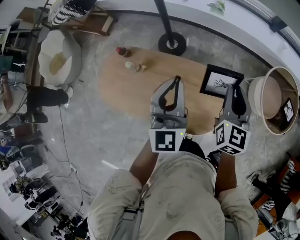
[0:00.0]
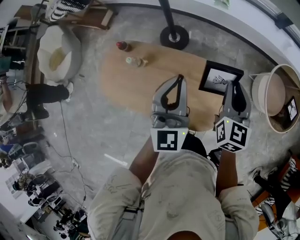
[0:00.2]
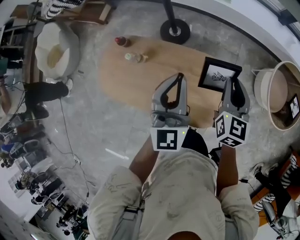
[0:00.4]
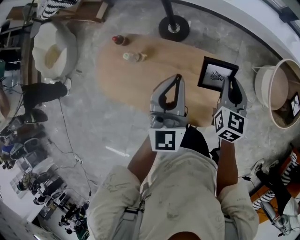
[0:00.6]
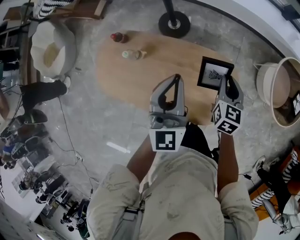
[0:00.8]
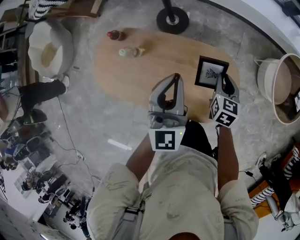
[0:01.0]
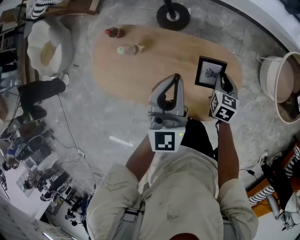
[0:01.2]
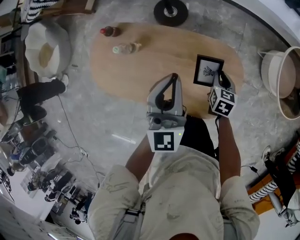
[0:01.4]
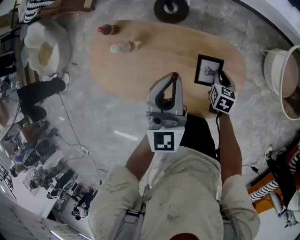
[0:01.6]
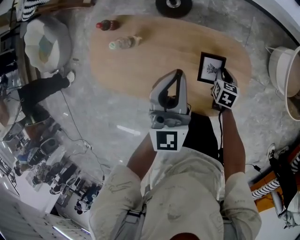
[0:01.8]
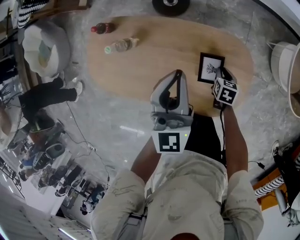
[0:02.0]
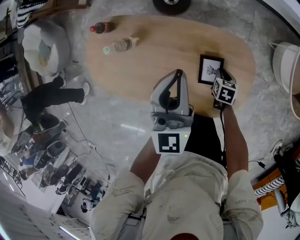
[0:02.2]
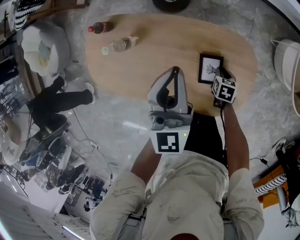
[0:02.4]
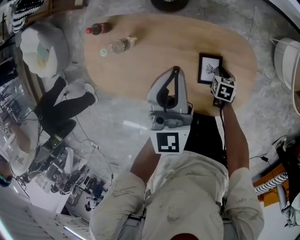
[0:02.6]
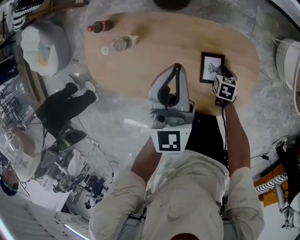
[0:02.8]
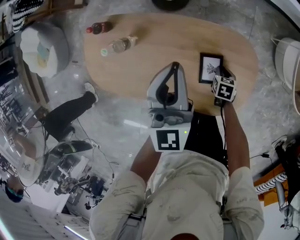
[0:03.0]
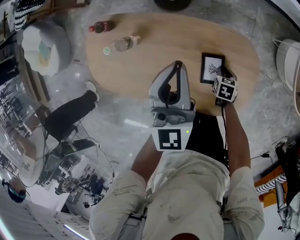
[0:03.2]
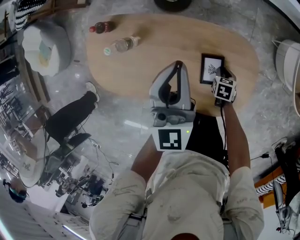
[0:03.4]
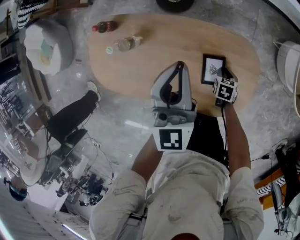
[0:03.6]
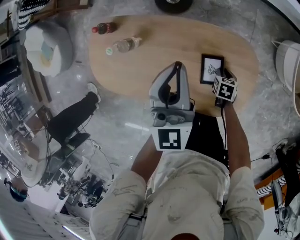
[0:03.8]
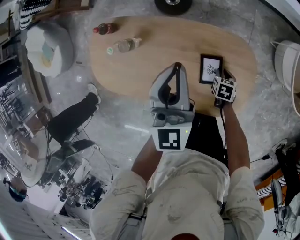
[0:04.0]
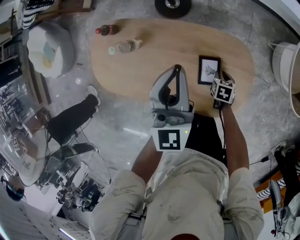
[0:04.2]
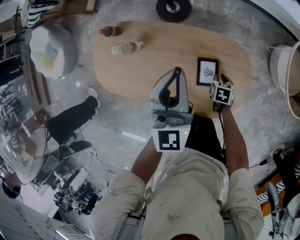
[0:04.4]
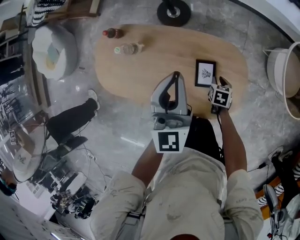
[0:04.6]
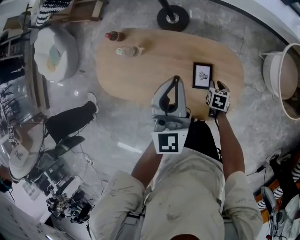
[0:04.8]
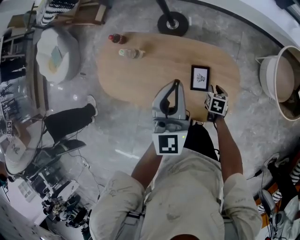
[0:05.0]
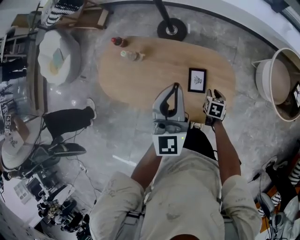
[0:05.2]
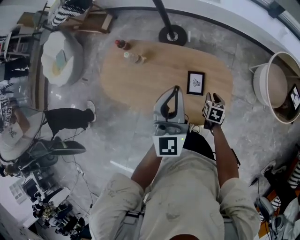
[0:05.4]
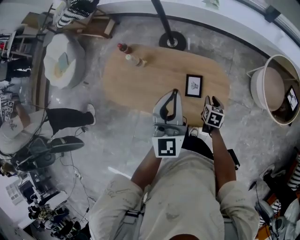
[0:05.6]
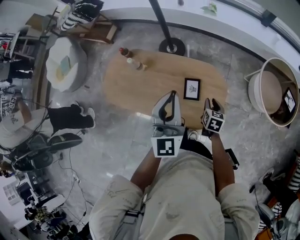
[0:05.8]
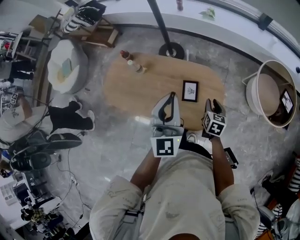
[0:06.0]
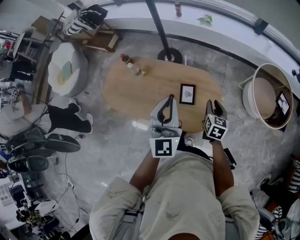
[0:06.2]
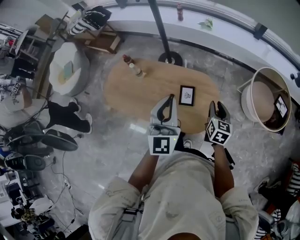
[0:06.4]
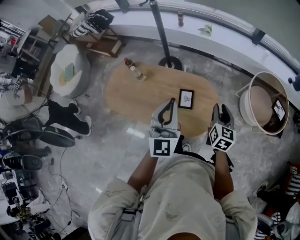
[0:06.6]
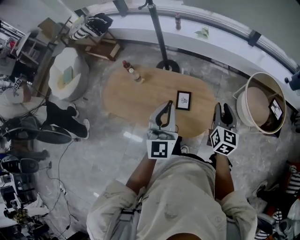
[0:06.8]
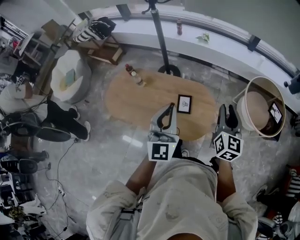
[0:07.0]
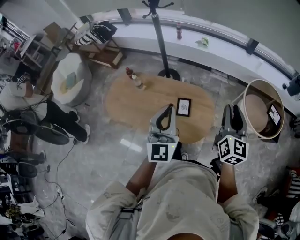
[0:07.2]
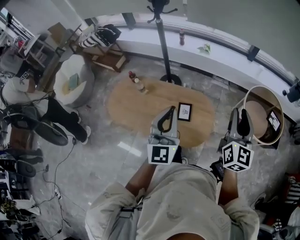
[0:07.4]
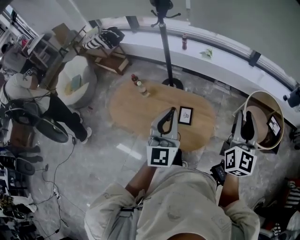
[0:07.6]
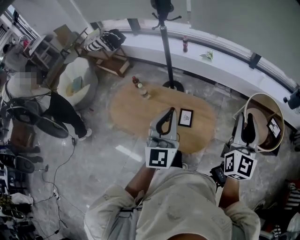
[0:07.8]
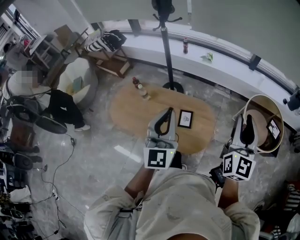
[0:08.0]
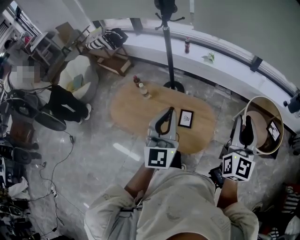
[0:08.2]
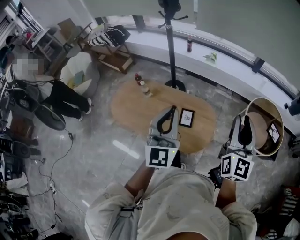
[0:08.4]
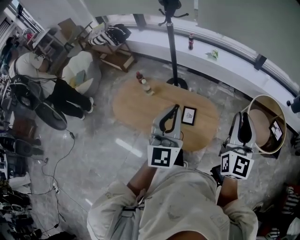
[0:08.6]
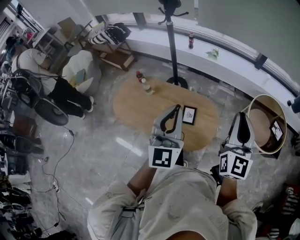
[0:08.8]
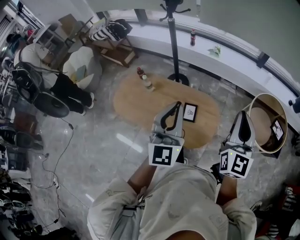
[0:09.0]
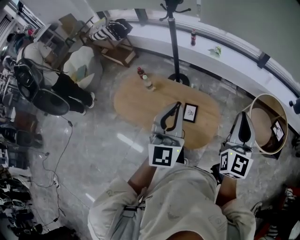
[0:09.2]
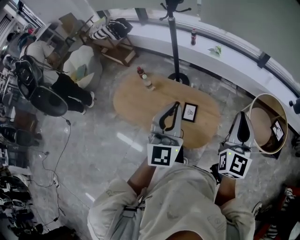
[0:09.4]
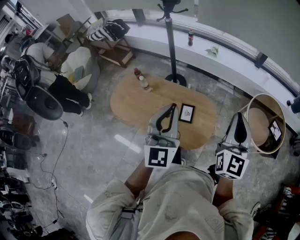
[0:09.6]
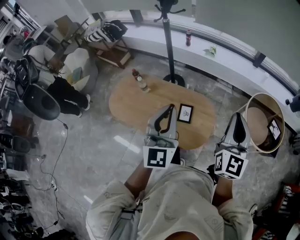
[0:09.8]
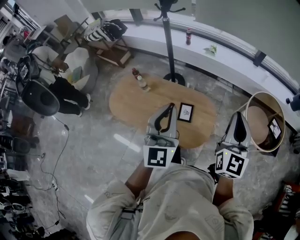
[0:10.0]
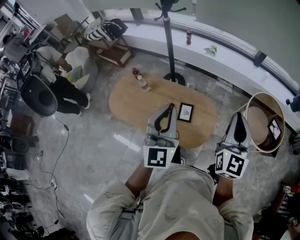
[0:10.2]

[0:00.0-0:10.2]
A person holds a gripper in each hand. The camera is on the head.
0:00.0 to 0:01.4: The left gripper travels downward by approximately 15 cm. Meanwhile the right gripper heads downward, covering some 30 cm, and tips its fingers downward by approximately 30 degrees.
0:01.4 to 0:03.0: The left gripper travels downward by approximately 5 cm. Meanwhile the right gripper is displaced downward by about 20 cm.
0:03.0 to 0:04.4: The left gripper moves upward, some 5 cm.
0:04.4 to 0:05.8: The left gripper travels backward and upward by approximately 20 cm; the right gripper shifts roughly 20 cm upward, and swivels some 20 degrees.
0:05.8 to 0:07.2: The right gripper is displaced upward by about 35 cm, and tilts its fingers about 40 degrees upward. The left gripper heads backward and upward, covering approximately 10 cm.
0:07.2 to 0:08.8: The grippers both shift upward by some 10 cm. The right gripper closes.
0:08.8 to 0:10.2: There are only small adjustments of the grippers.

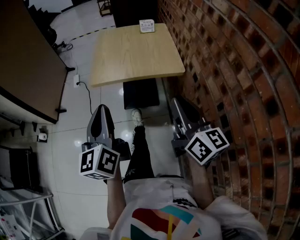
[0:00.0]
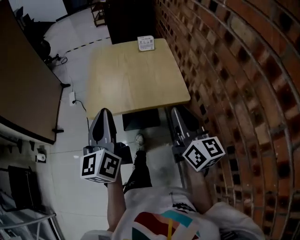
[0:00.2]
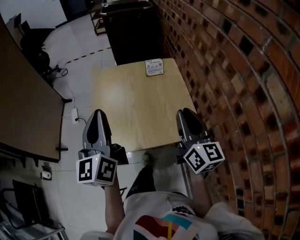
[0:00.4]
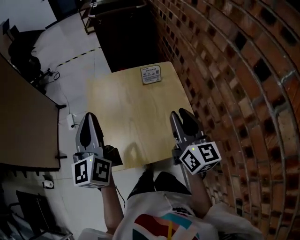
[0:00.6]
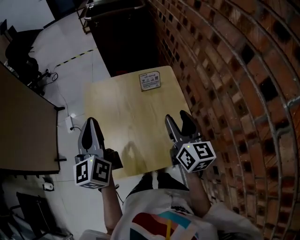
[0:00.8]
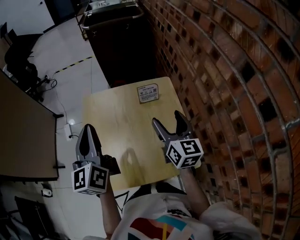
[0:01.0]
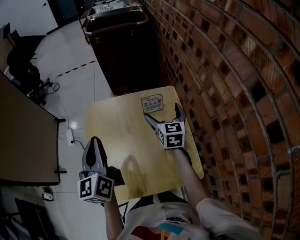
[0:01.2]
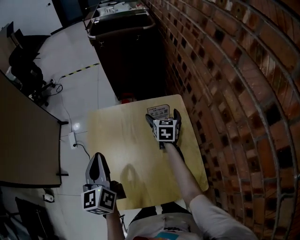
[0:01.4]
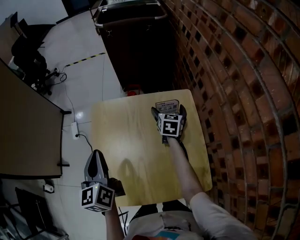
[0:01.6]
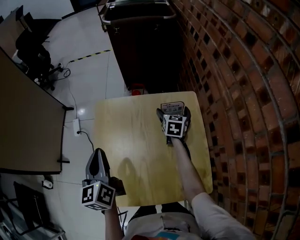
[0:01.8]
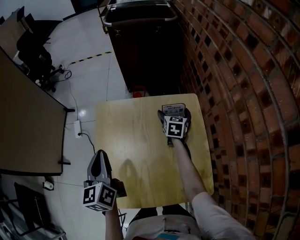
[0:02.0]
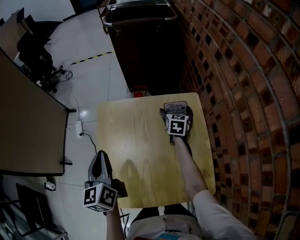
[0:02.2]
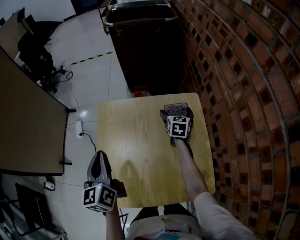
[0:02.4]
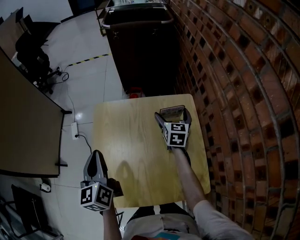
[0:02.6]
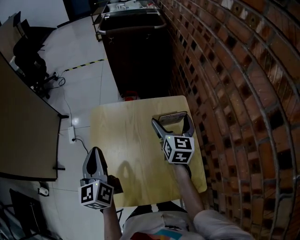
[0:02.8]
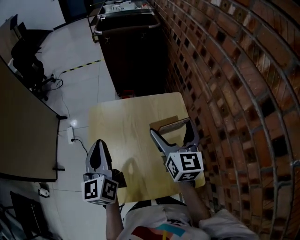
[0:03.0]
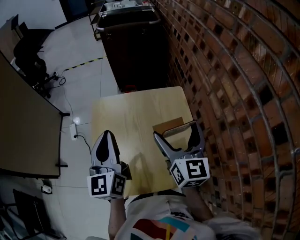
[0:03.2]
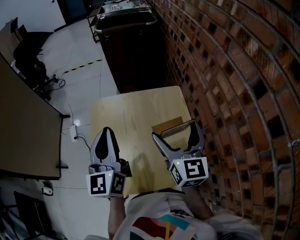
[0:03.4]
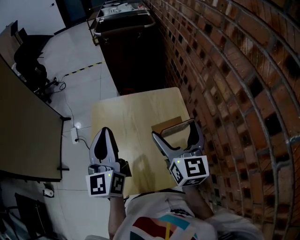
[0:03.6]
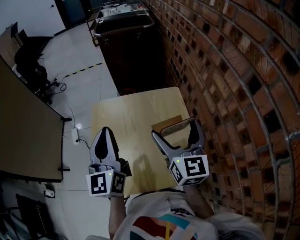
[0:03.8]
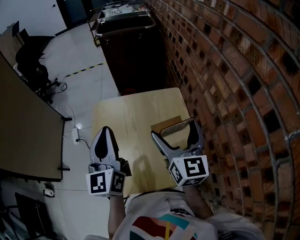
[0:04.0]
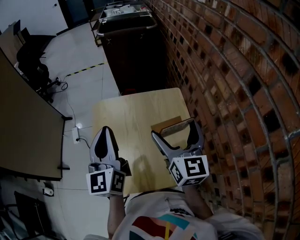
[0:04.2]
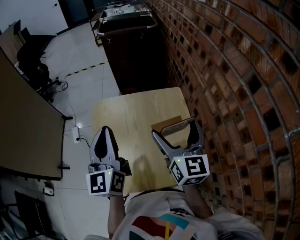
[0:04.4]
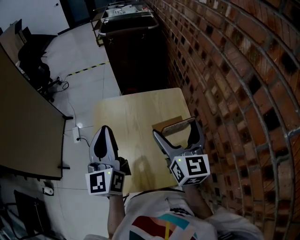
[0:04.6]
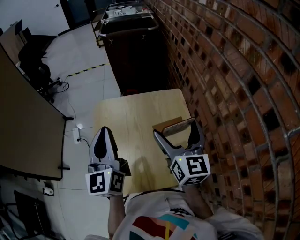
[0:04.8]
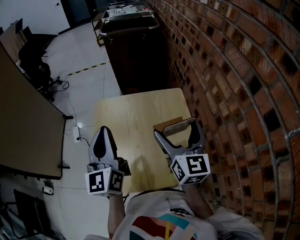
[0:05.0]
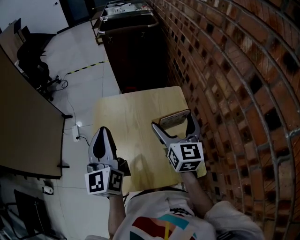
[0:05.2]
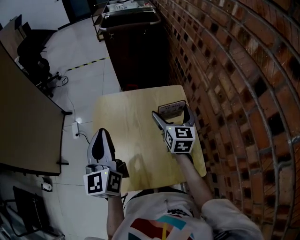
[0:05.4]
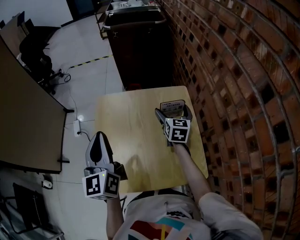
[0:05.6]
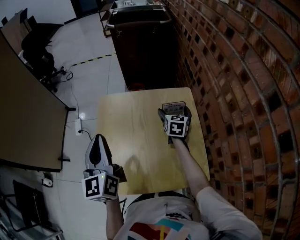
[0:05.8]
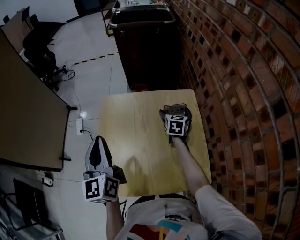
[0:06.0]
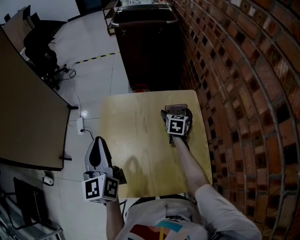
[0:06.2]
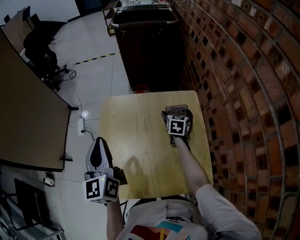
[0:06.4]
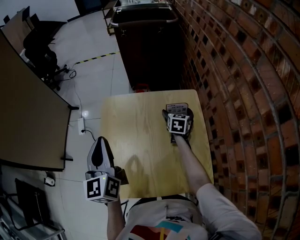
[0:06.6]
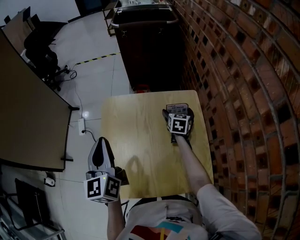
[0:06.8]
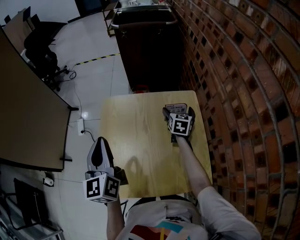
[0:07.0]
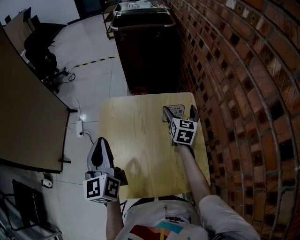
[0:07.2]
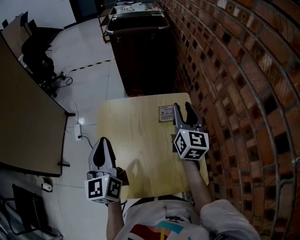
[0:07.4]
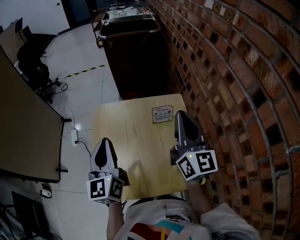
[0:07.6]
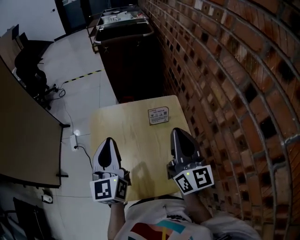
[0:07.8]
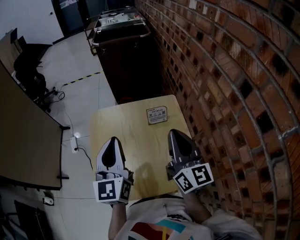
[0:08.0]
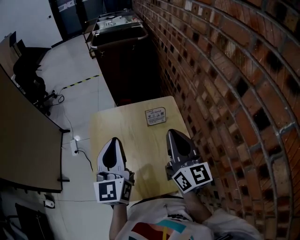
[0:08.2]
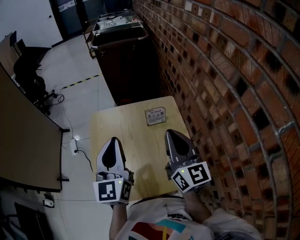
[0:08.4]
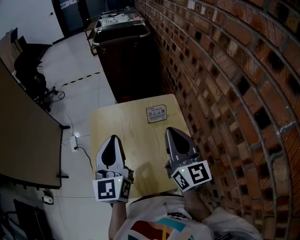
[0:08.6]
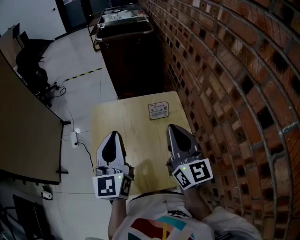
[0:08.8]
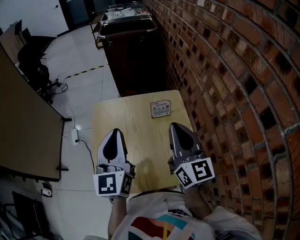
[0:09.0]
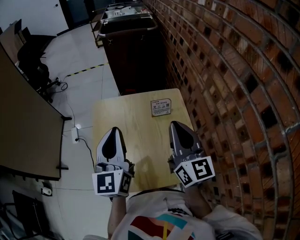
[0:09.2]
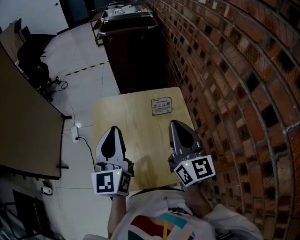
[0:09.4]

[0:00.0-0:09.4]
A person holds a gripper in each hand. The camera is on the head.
0:00.0 to 0:01.6: The two grippers travel together, forward, approximately 70 cm. The right gripper tips its fingers downward by about 40 degrees, and opens up.
0:01.6 to 0:03.2: The right gripper moves upward and backward, about 30 cm, and swivels some 30 degrees. The left gripper travels upward and to the right by roughly 10 cm.
0:03.2 to 0:04.8: There are only small adjustments of the grippers.
0:04.8 to 0:06.2: The left gripper moves to the left and downward, roughly 10 cm. The right gripper heads downward and forward, covering roughly 35 cm, and points its fingers approximately 30 degrees further downward.
0:06.2 to 0:07.8: The left gripper heads to the right, covering some 10 cm. The right gripper is displaced upward and backward by approximately 35 cm, tilts its fingers some 50 degrees upward, and closes.
0:07.8 to 0:09.4: The grippers move only a little.

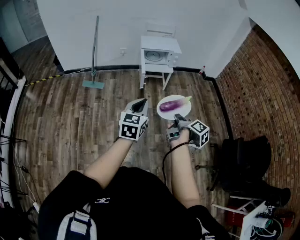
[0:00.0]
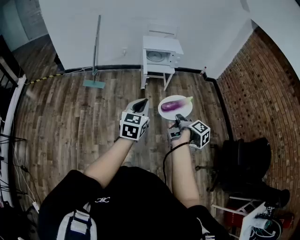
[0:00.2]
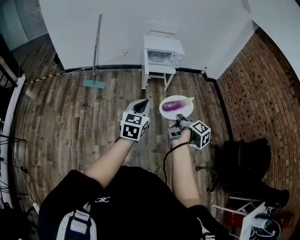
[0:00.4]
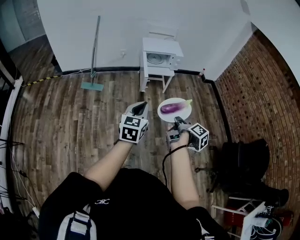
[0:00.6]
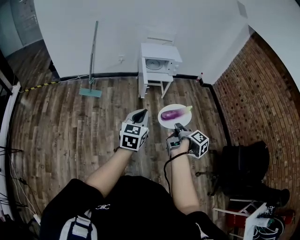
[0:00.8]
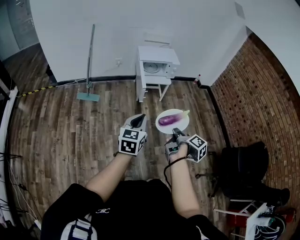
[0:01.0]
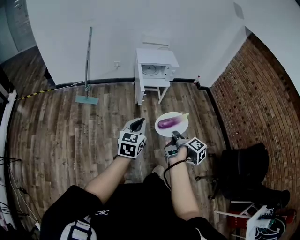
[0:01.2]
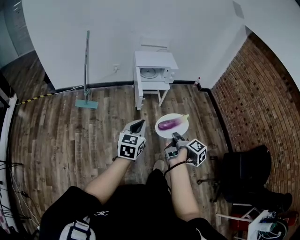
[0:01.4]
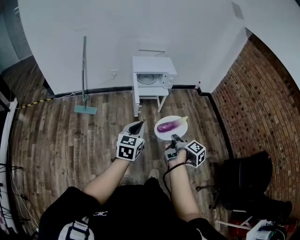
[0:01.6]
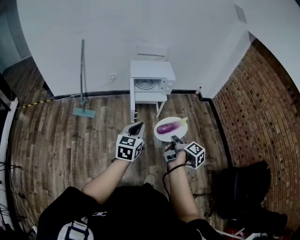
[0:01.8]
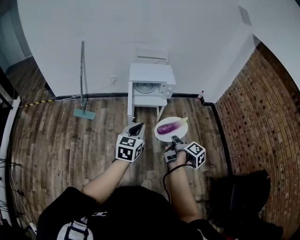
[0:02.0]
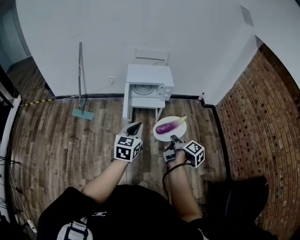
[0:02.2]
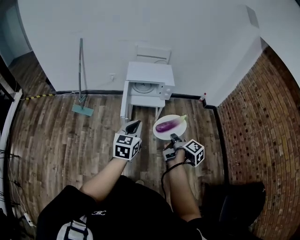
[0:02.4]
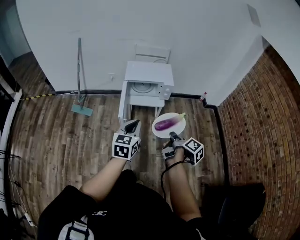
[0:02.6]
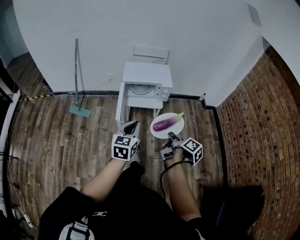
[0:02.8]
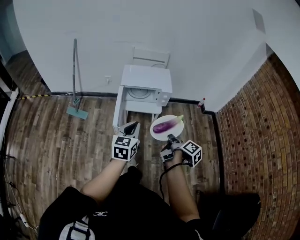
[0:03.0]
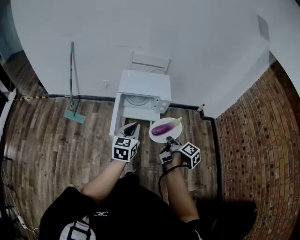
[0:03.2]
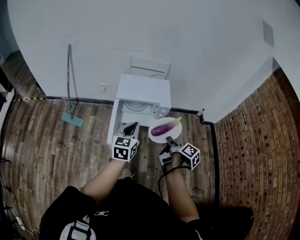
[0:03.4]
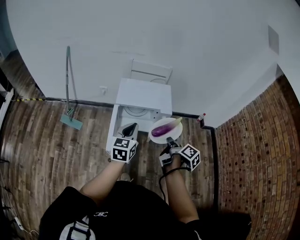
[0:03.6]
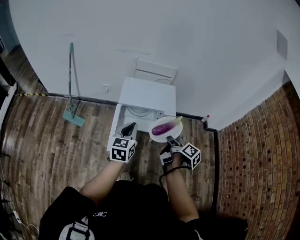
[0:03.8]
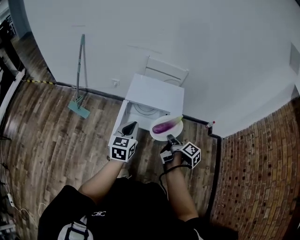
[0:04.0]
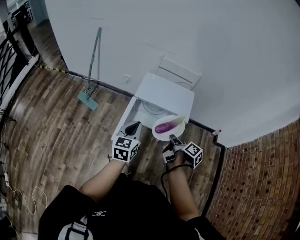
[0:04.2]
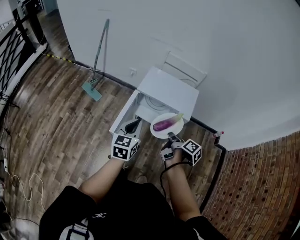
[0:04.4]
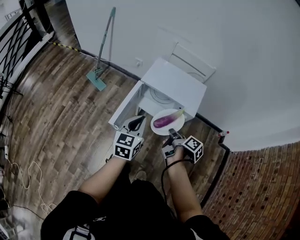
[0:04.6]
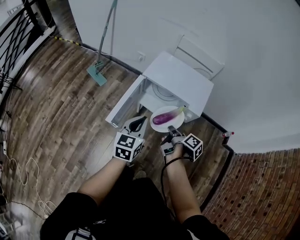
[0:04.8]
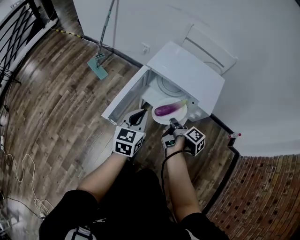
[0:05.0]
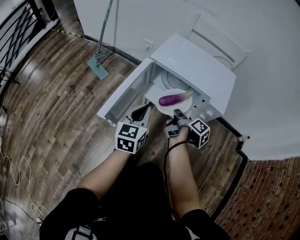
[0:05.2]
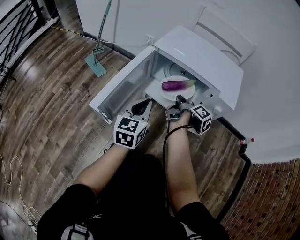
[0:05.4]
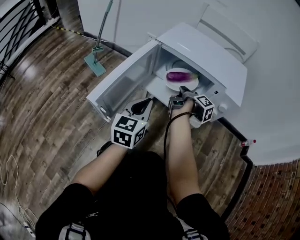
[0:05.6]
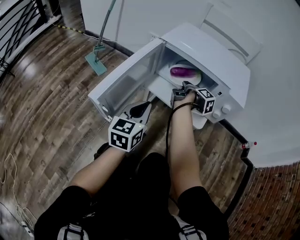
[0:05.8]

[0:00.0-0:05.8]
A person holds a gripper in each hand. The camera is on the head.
0:00.0 to 0:01.4: Both grippers travel together forward, approximately 10 cm.
0:01.4 to 0:02.8: The grippers both shift forward and to the right by approximately 30 cm.
0:02.8 to 0:04.4: Both grippers travel together forward, approximately 25 cm. The right gripper turns by some 30 degrees; the left gripper changes its angle by about 20 degrees.
0:04.4 to 0:05.8: The right gripper travels downward and forward by approximately 40 cm. Meanwhile the left gripper shifts approximately 35 cm downward.
